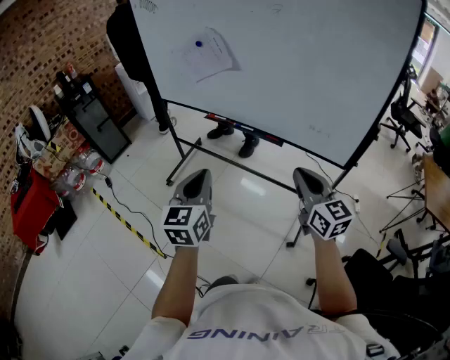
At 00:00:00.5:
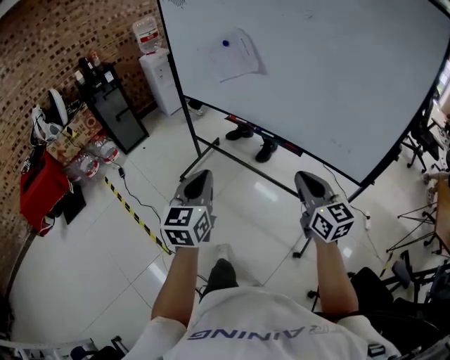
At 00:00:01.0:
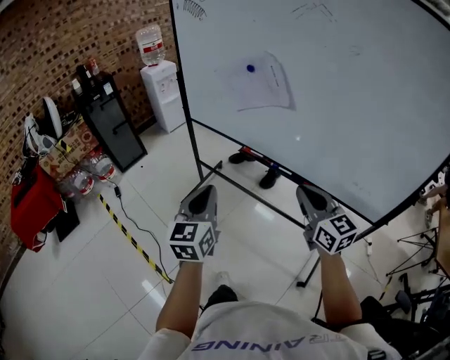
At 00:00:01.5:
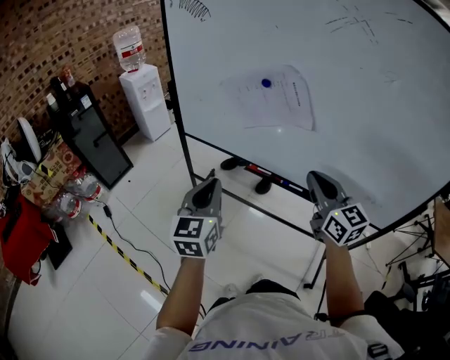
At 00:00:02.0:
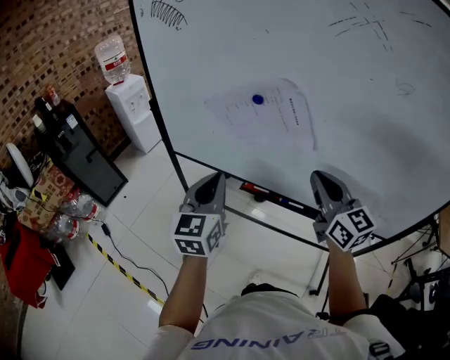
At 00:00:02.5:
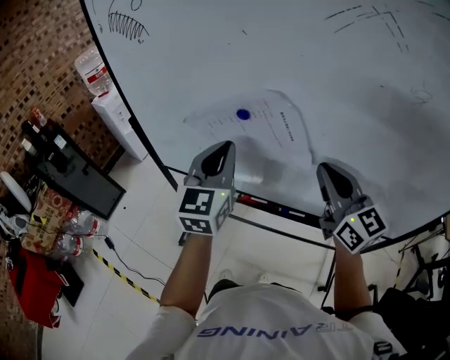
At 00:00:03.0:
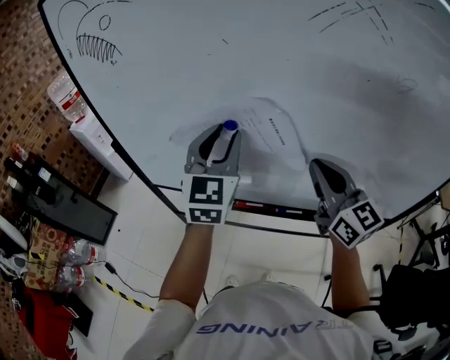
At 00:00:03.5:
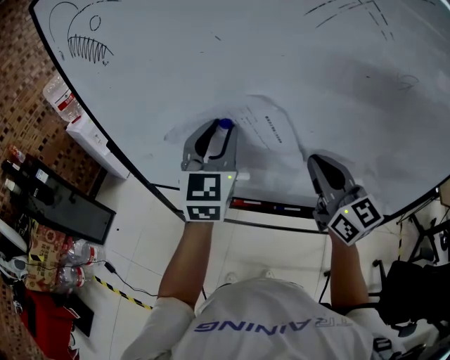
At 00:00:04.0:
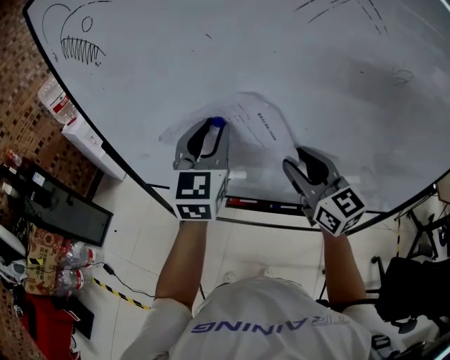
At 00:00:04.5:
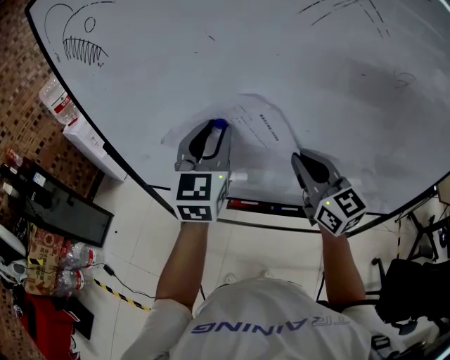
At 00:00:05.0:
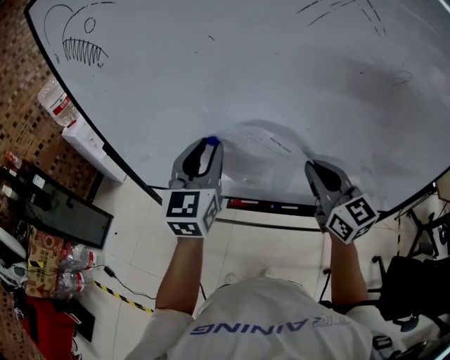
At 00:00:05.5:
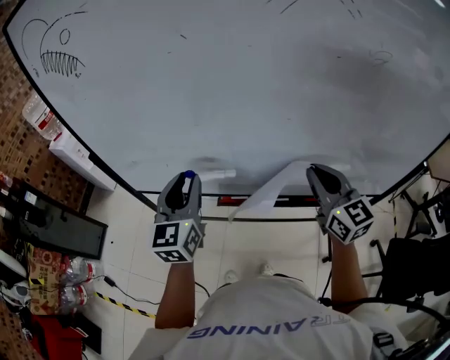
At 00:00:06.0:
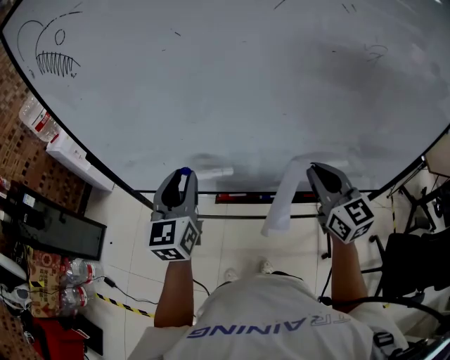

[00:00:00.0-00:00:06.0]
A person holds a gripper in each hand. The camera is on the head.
00:00:00.0 to 00:00:02.0: Both grippers move forward, about 40 cm.
00:00:02.0 to 00:00:04.0: The right gripper heads forward, covering about 10 cm, and opens up; the left gripper travels forward, upward and to the right by roughly 20 cm, and opens its fingers.
00:00:04.0 to 00:00:06.0: The right gripper heads to the right and backward, covering about 10 cm, and closes. Meanwhile the left gripper is displaced downward, backward and to the left by some 15 cm.

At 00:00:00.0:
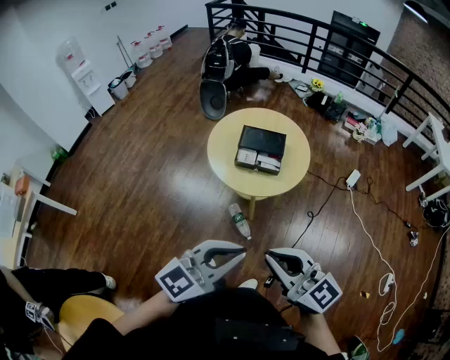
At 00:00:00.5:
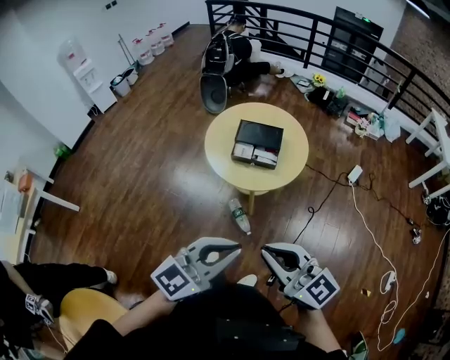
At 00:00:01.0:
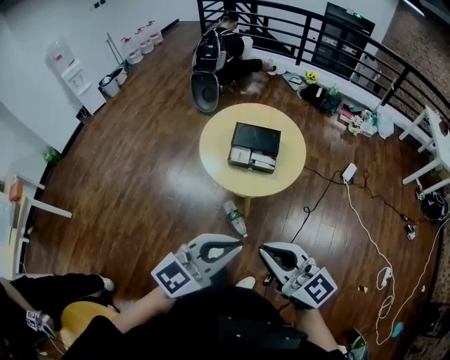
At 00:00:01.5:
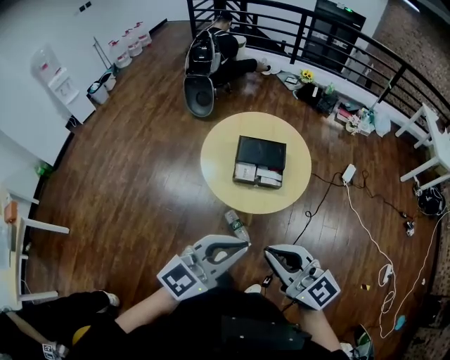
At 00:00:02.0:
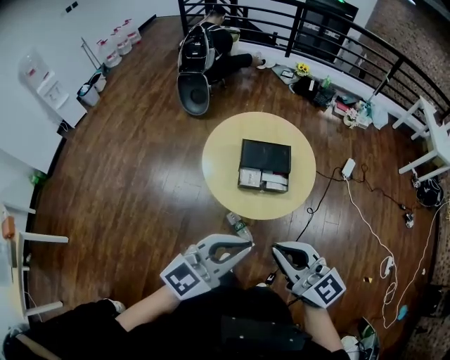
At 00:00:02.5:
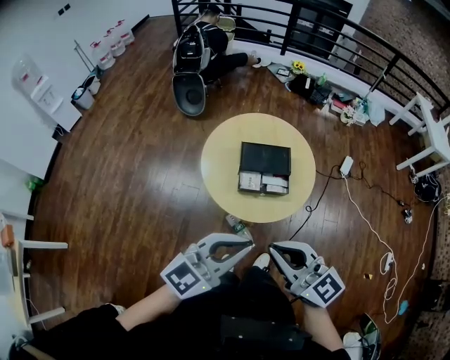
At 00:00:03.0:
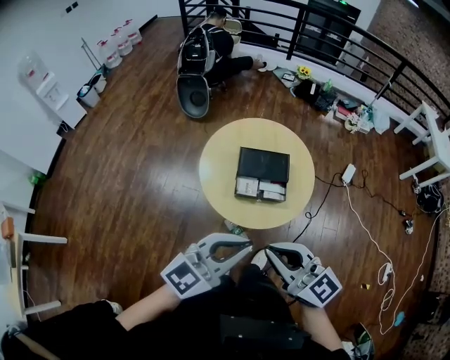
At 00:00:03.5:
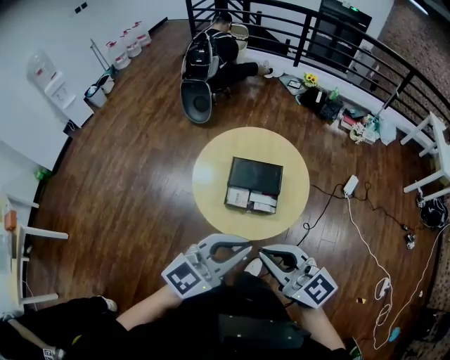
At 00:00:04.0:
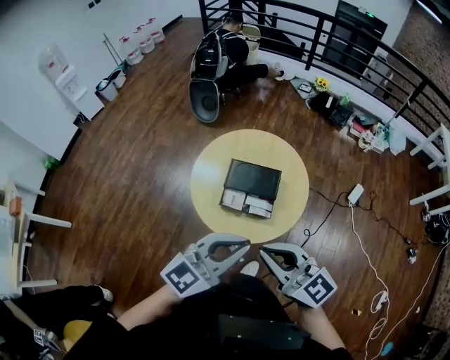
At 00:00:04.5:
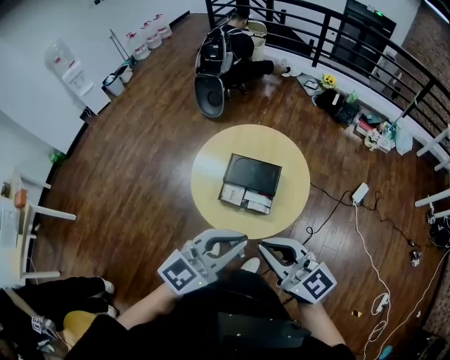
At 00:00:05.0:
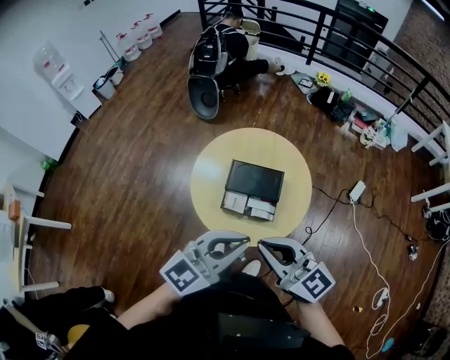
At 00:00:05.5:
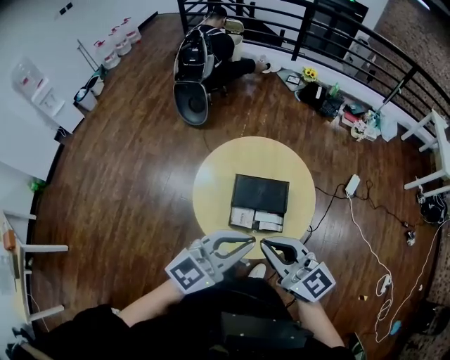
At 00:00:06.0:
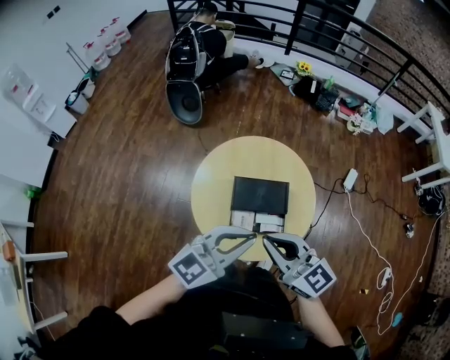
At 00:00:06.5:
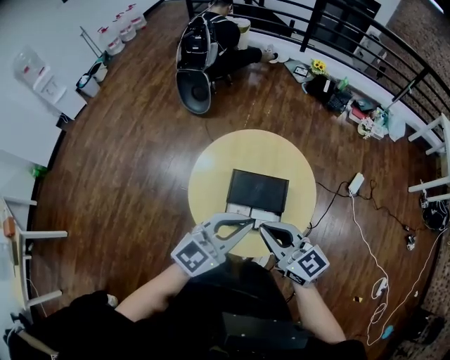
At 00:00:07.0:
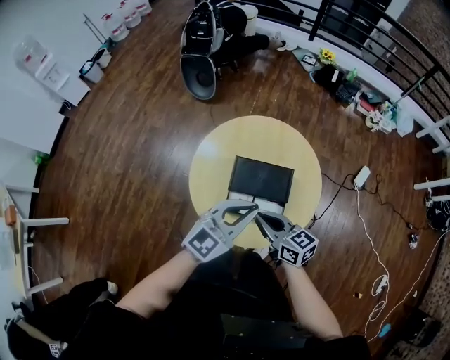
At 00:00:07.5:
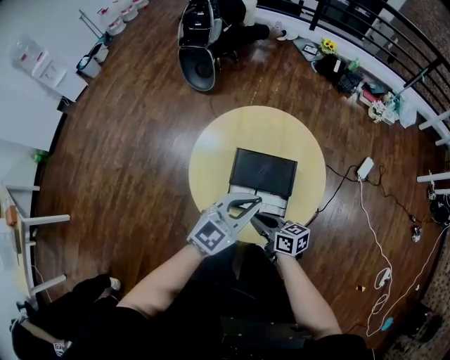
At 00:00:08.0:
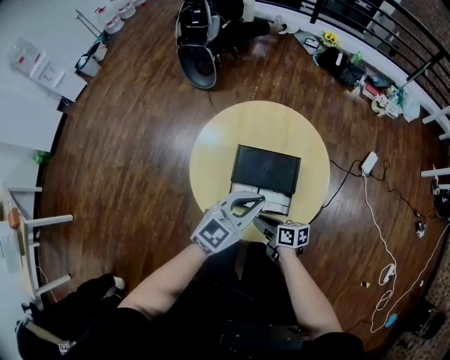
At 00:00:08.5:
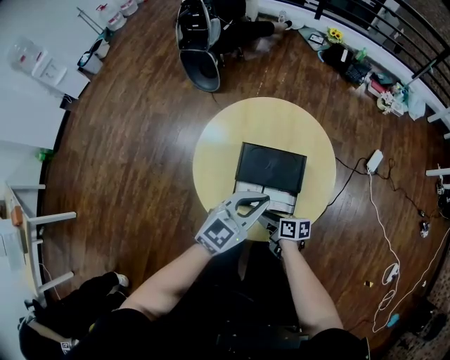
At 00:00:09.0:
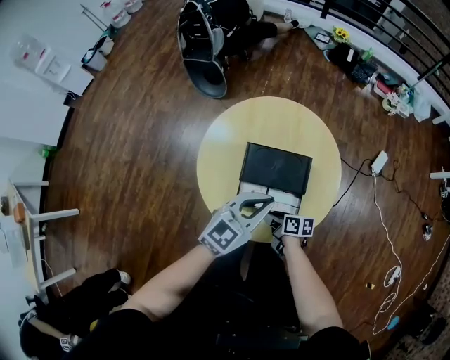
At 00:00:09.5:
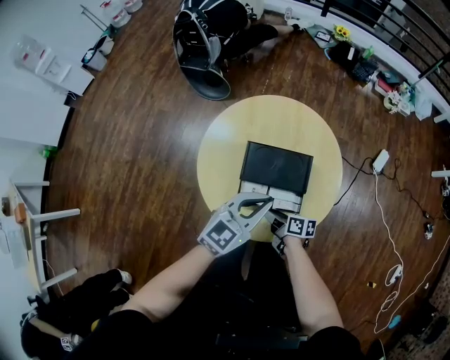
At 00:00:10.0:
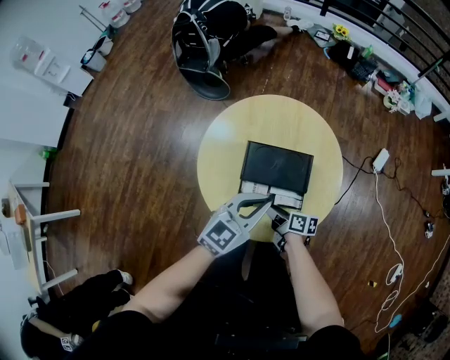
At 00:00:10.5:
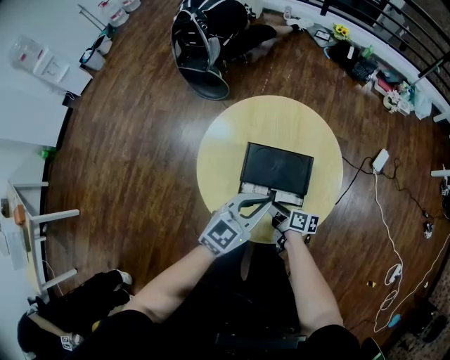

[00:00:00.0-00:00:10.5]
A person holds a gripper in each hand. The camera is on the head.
00:00:00.0 to 00:00:02.0: Both grippers move forward and to the left, about 35 cm.
00:00:02.0 to 00:00:04.0: The grippers both shift to the right and forward by about 25 cm.
00:00:04.0 to 00:00:06.5: The grippers both shift forward and downward by approximately 30 cm.
00:00:06.5 to 00:00:08.5: The left gripper moves downward, about 20 cm. The right gripper travels downward by about 40 cm, twists approximately 50 degrees clockwise, seen from behind, and opens.
00:00:08.5 to 00:00:10.5: The right gripper is displaced forward by approximately 5 cm.

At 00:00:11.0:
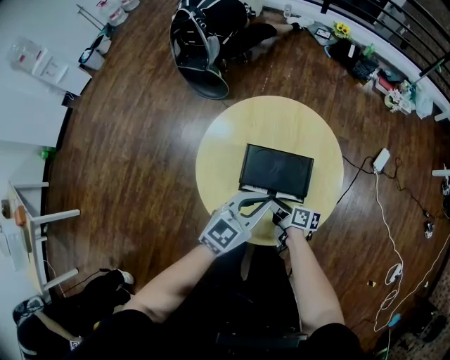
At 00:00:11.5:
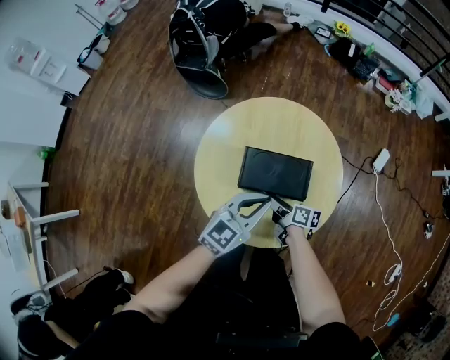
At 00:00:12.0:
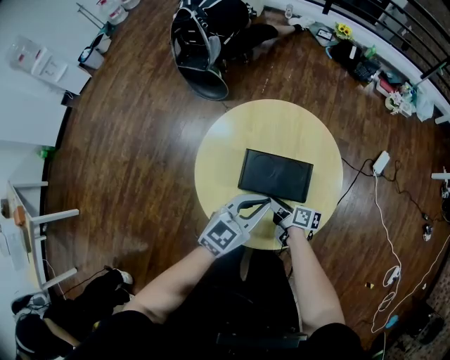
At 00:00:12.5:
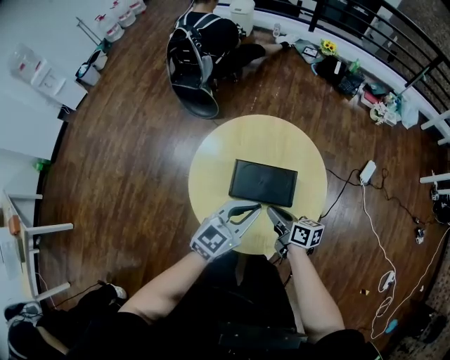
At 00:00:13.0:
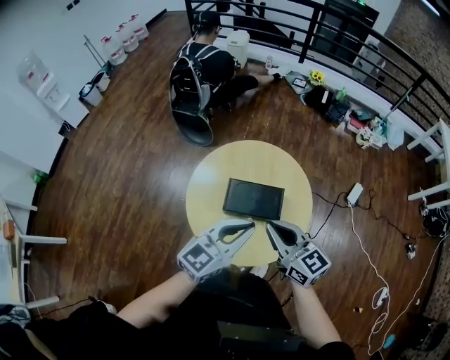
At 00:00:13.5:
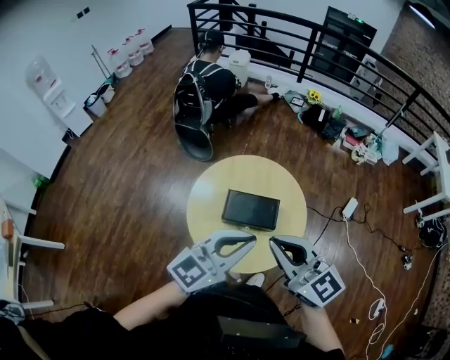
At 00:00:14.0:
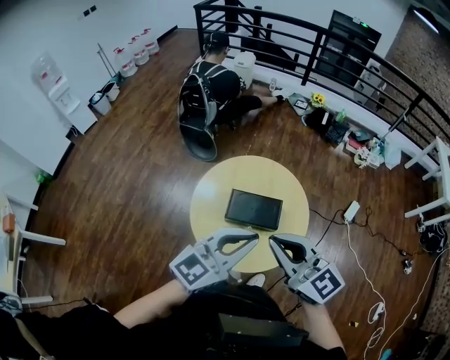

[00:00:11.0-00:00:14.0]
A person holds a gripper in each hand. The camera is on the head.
00:00:11.0 to 00:00:12.5: The right gripper is displaced upward by roughly 15 cm. The left gripper heads upward, covering approximately 5 cm.
00:00:12.5 to 00:00:14.0: Both grippers move upward and backward, some 40 cm. The right gripper rotates around the line of its fingers by roughly 60 degrees, counterclockwise from behind.

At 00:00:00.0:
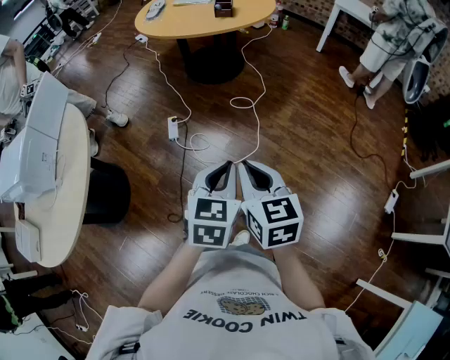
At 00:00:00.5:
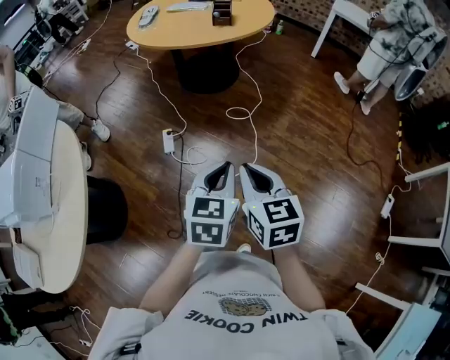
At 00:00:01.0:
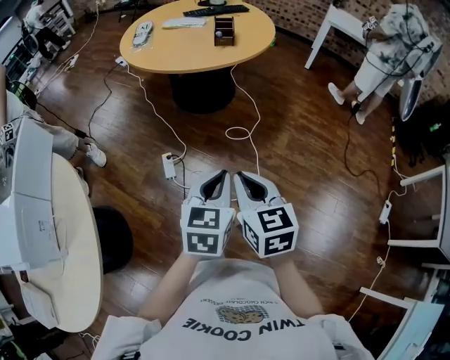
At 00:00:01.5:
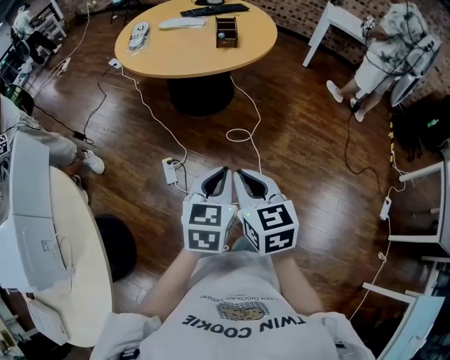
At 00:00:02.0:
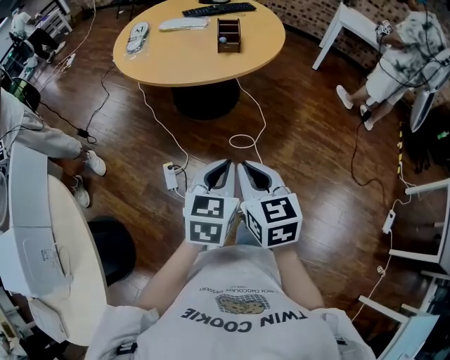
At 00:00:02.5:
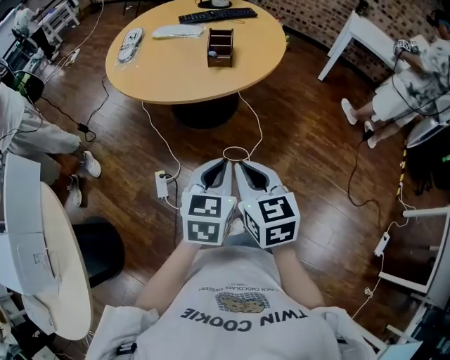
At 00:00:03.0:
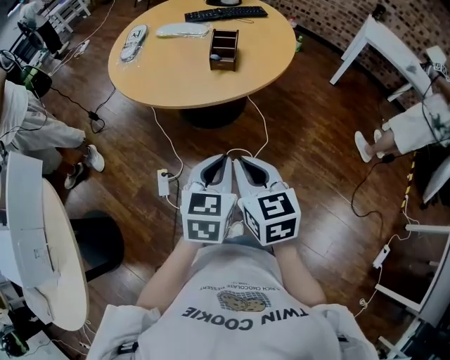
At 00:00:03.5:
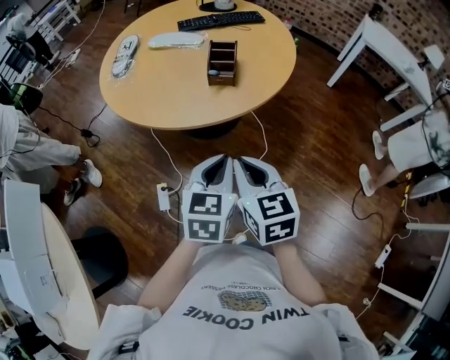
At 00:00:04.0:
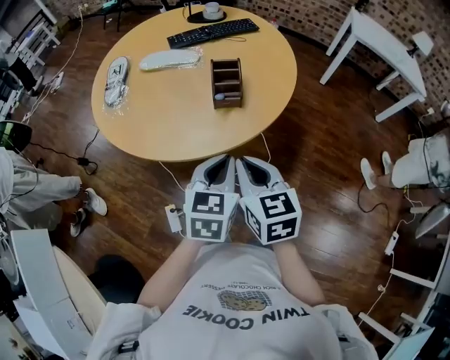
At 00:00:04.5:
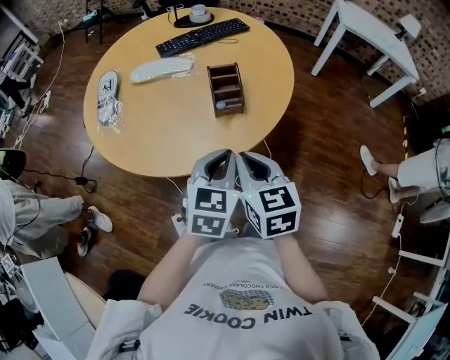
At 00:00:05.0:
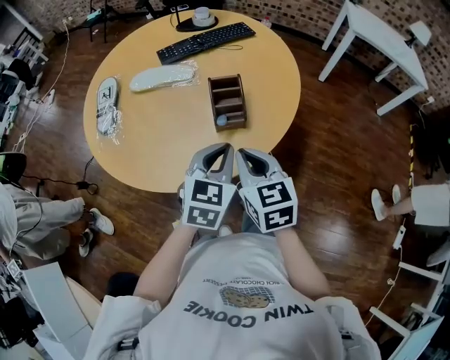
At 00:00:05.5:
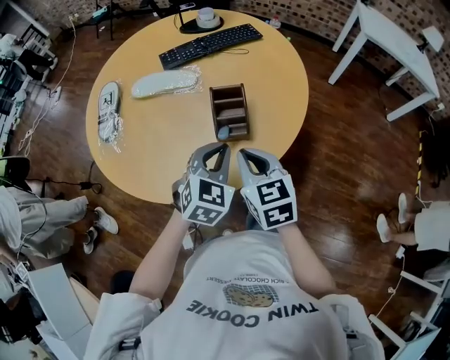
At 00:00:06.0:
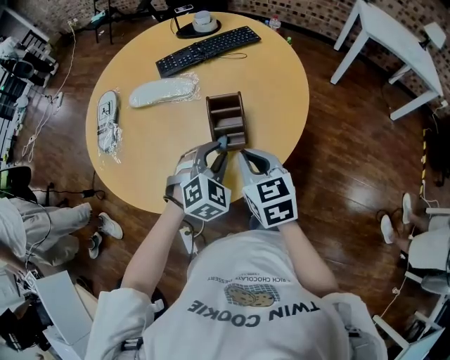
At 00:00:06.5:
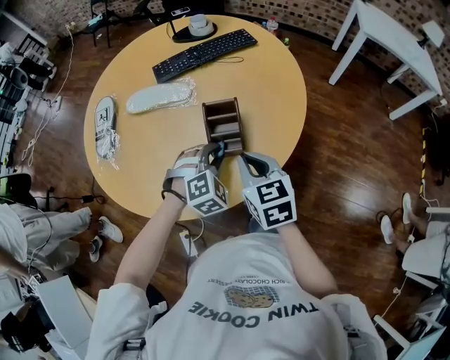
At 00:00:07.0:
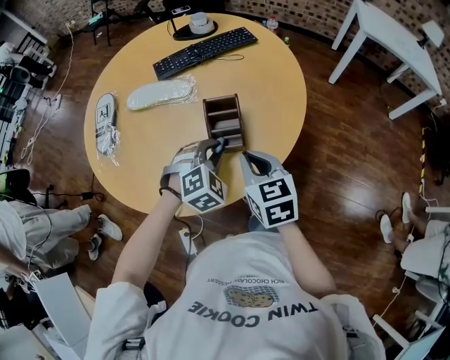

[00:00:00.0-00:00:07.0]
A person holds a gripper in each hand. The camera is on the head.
00:00:00.0 to 00:00:02.0: The grippers both shift forward by approximately 35 cm.
00:00:02.0 to 00:00:03.5: Both grippers travel together forward, about 25 cm.
00:00:03.5 to 00:00:05.0: Both grippers move forward, about 25 cm. The left gripper swivels approximately 20 degrees.
00:00:05.0 to 00:00:07.0: The left gripper is displaced forward and downward by about 15 cm, and rotates around the line of its fingers by approximately 40 degrees, clockwise from behind, while the right gripper moves forward, approximately 10 cm.
